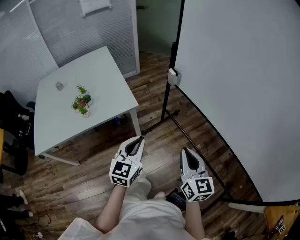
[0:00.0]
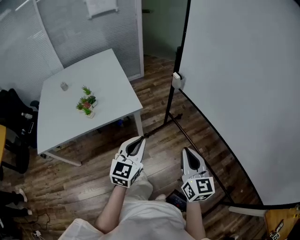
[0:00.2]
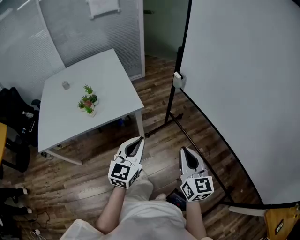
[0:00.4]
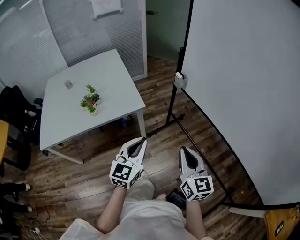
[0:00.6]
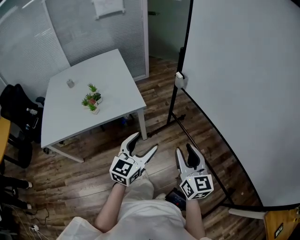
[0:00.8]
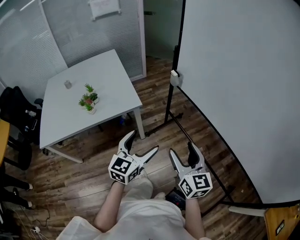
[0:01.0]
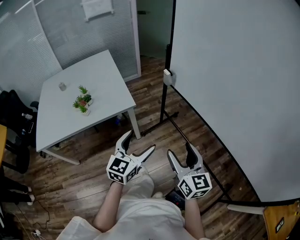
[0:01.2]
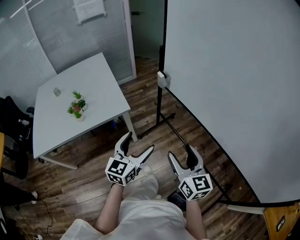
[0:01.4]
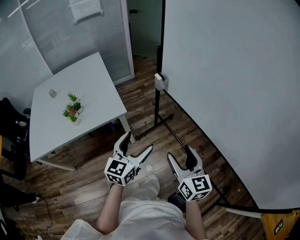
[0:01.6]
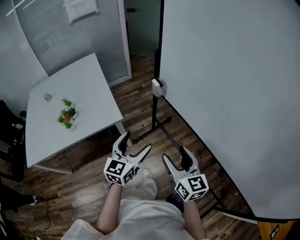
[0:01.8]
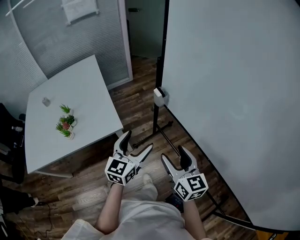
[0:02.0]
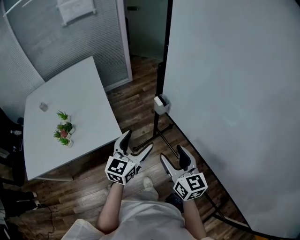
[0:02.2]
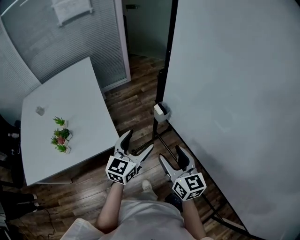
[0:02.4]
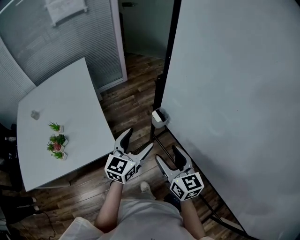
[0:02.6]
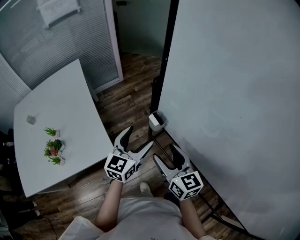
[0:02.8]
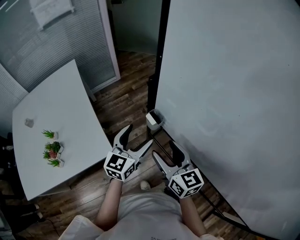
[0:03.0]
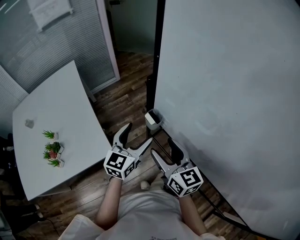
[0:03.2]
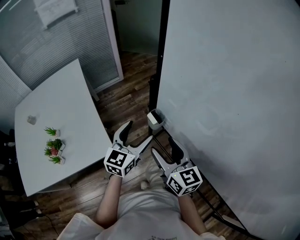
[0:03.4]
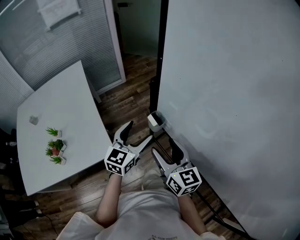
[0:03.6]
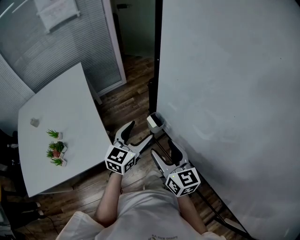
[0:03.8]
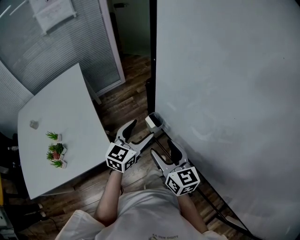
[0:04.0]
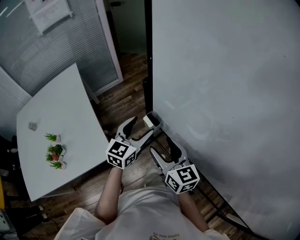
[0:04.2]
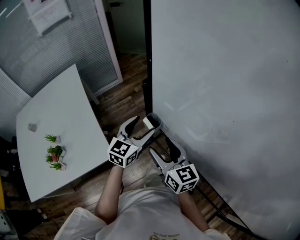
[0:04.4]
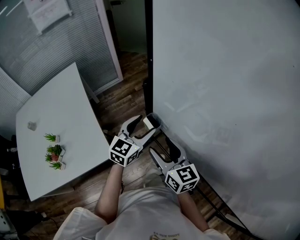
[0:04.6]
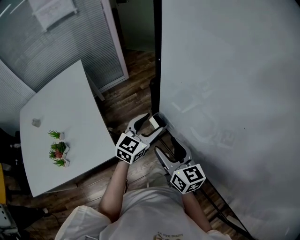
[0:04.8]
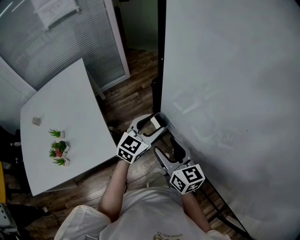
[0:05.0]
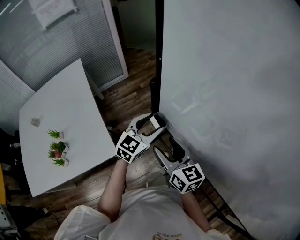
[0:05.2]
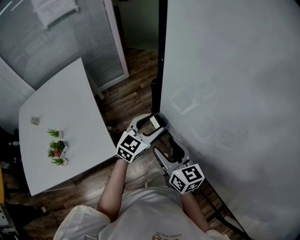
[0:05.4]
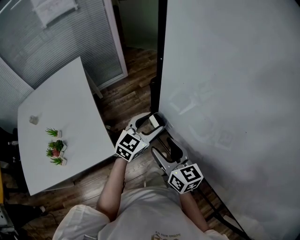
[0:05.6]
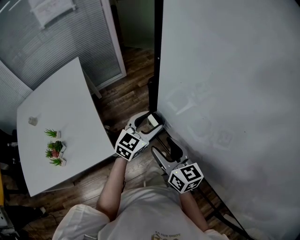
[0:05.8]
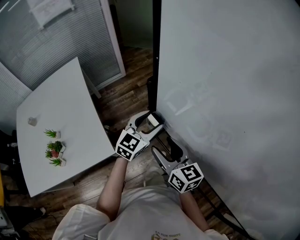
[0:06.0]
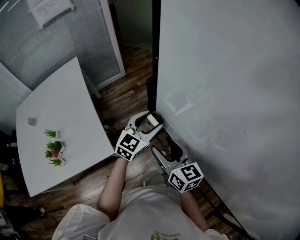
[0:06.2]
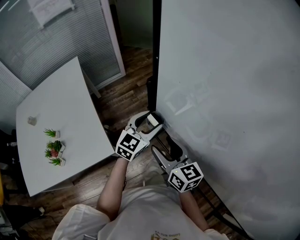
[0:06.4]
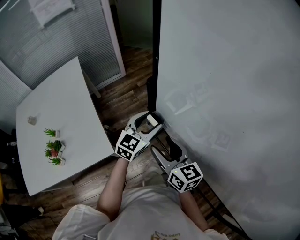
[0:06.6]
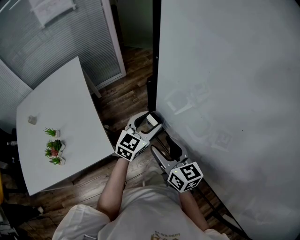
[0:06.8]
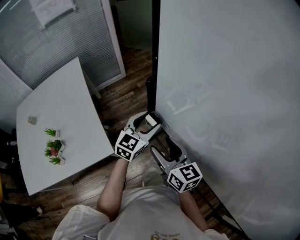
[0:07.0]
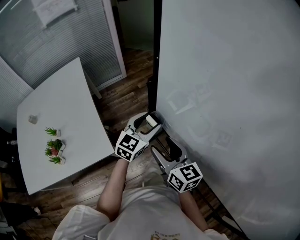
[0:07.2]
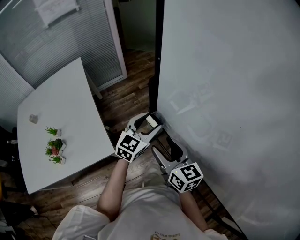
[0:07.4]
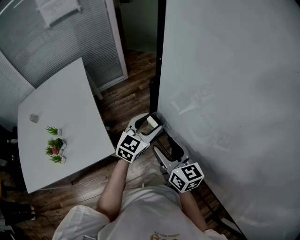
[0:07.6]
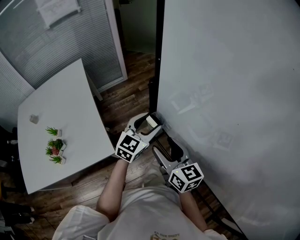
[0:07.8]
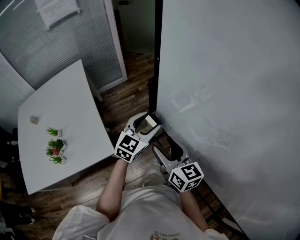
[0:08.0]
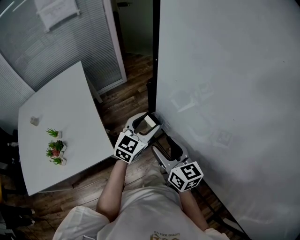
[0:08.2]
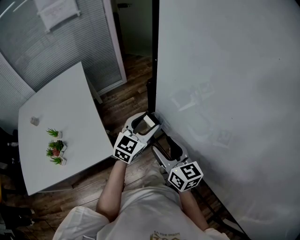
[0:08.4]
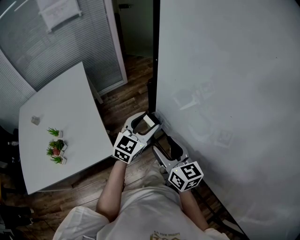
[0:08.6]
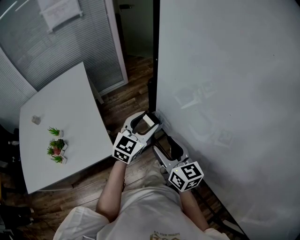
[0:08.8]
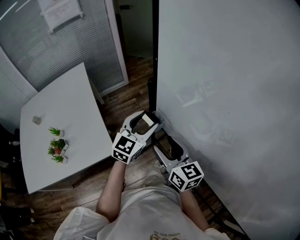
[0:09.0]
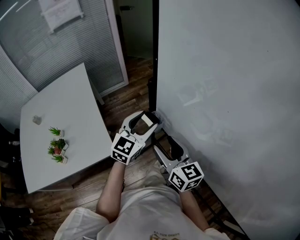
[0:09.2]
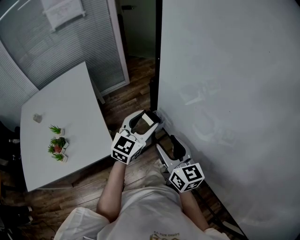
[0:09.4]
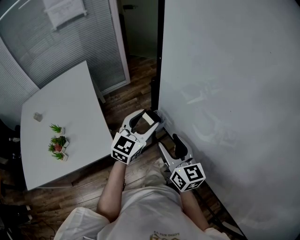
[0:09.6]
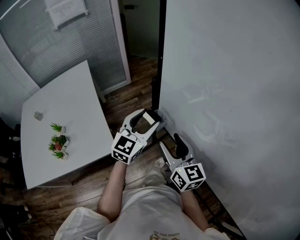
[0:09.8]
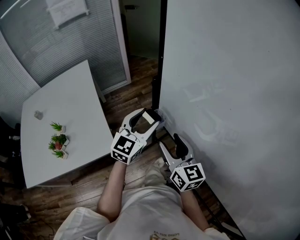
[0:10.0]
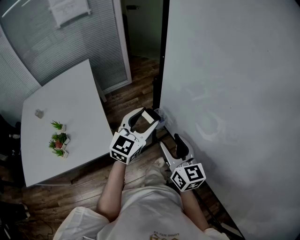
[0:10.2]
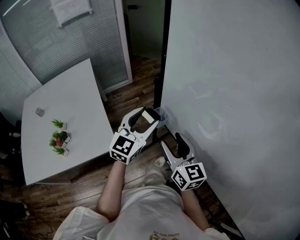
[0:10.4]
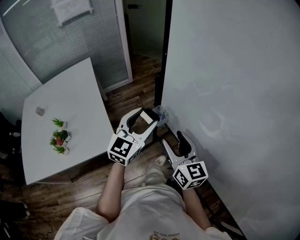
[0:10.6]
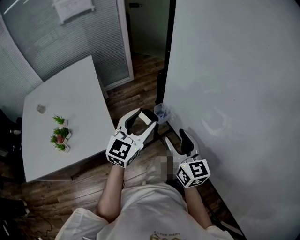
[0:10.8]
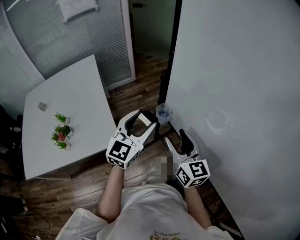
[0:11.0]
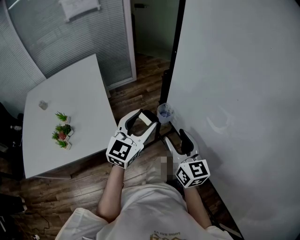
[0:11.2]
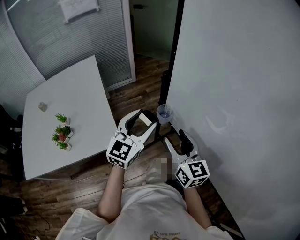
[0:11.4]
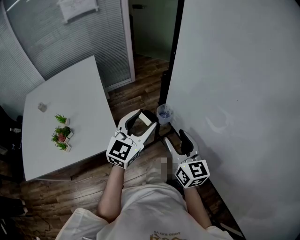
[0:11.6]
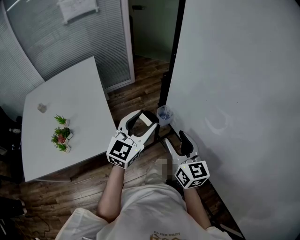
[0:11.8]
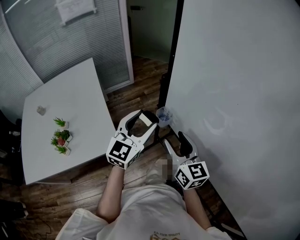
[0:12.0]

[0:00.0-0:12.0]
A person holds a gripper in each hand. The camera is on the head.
0:00.0 to 0:01.6: The two grippers go roughly 5 cm to the right. The left gripper opens. Meanwhile the right gripper opens up.
0:01.6 to 0:03.0: Both grippers travel together forward, some 35 cm.
0:03.0 to 0:04.4: The left gripper moves forward, approximately 5 cm.
0:04.4 to 0:07.6: The grippers make only small movements.
0:07.6 to 0:09.0: The left gripper changes place by about 5 cm.
0:09.0 to 0:10.4: The left gripper shifts by roughly 5 cm.
0:10.4 to 0:12.0: The grippers move only a little.

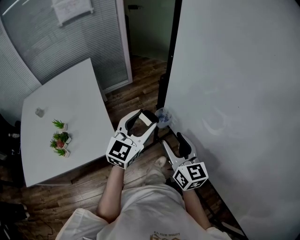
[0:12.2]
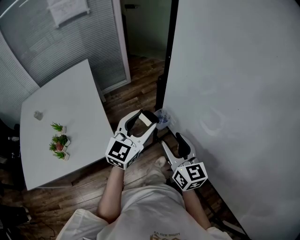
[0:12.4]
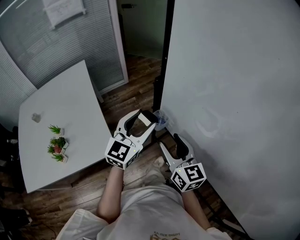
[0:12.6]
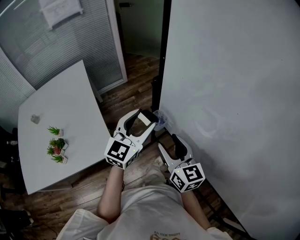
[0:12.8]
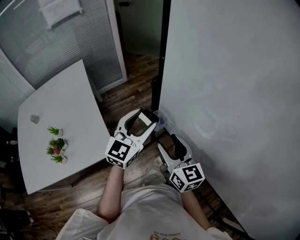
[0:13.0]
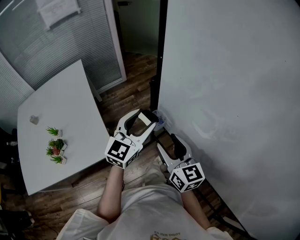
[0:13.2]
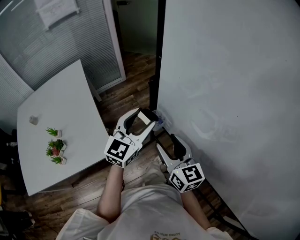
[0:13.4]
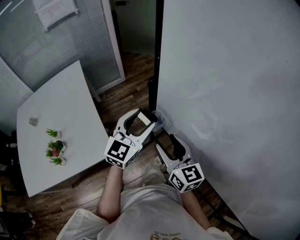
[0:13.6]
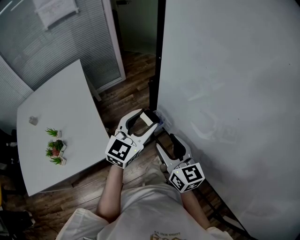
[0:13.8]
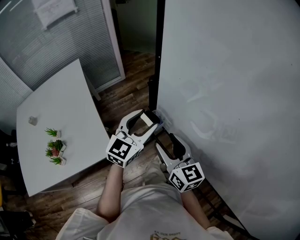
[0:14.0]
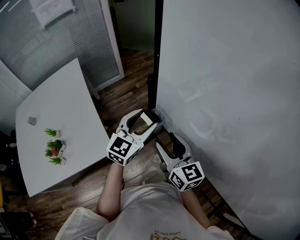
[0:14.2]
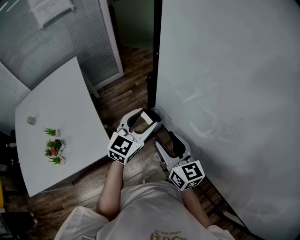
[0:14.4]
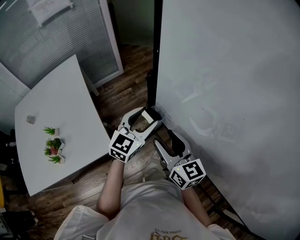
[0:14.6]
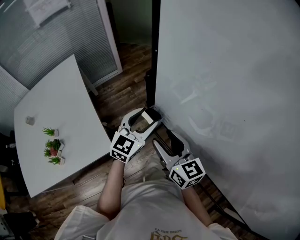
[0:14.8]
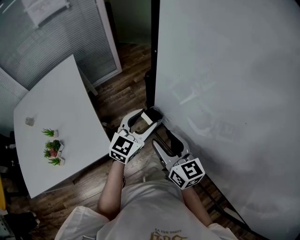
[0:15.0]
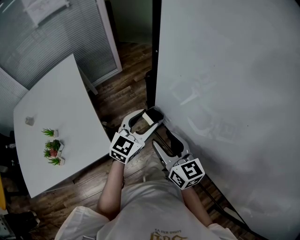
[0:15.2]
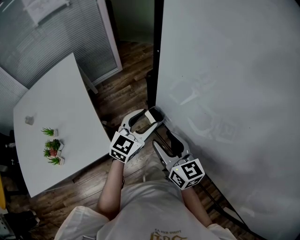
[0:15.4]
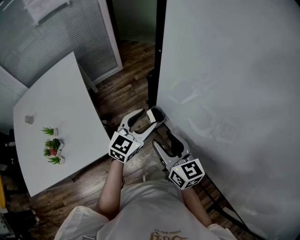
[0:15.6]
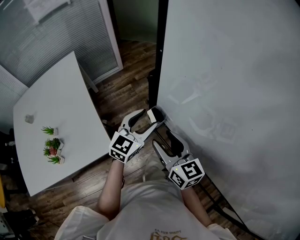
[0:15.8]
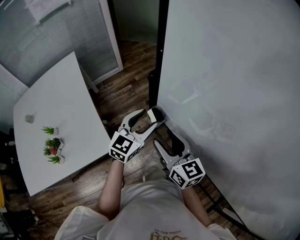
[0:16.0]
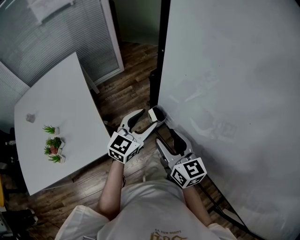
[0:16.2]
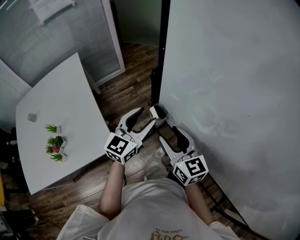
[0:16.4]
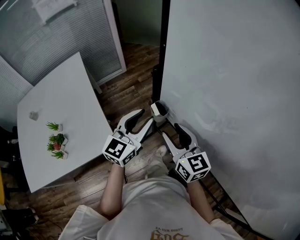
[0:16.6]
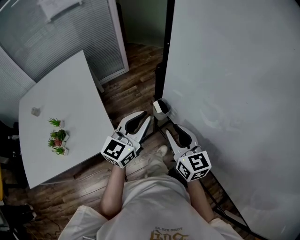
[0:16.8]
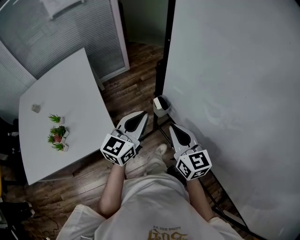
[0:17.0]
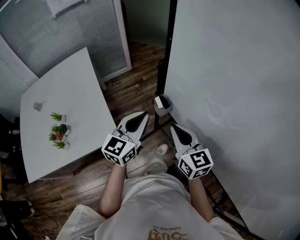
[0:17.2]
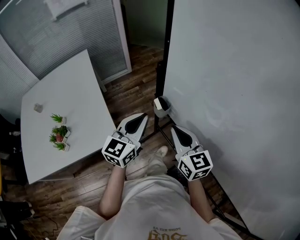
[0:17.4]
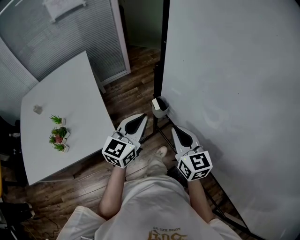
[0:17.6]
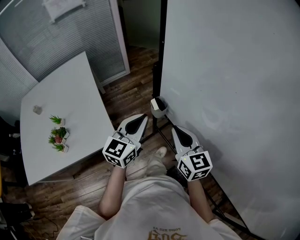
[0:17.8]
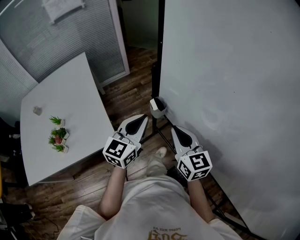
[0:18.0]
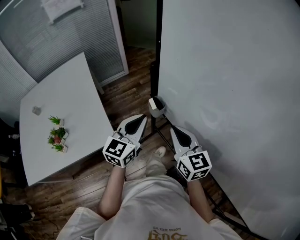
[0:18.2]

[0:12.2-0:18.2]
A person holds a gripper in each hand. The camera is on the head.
0:12.2 to 0:13.8: The left gripper shifts by roughly 5 cm.
0:13.8 to 0:15.2: The left gripper goes approximately 5 cm downward.
0:15.2 to 0:16.6: The left gripper changes place by about 5 cm.
0:16.6 to 0:18.2: The right gripper closes up.

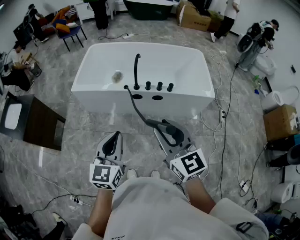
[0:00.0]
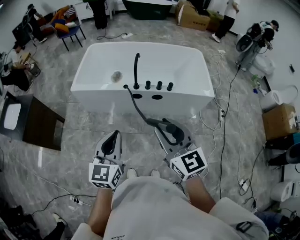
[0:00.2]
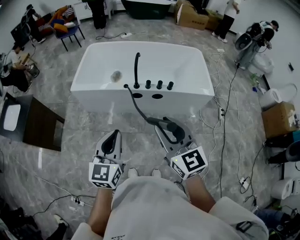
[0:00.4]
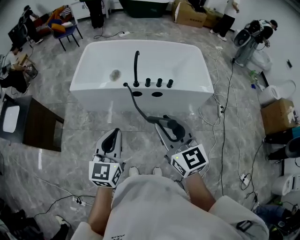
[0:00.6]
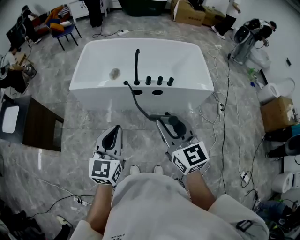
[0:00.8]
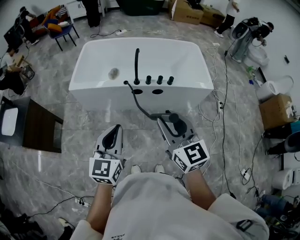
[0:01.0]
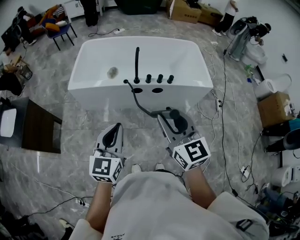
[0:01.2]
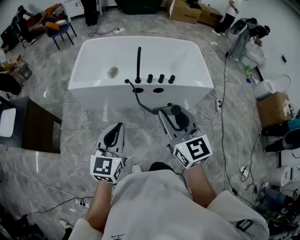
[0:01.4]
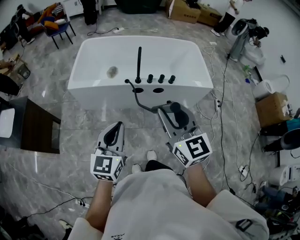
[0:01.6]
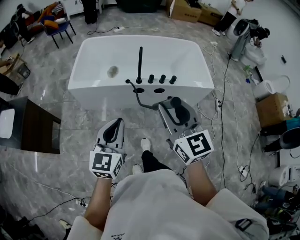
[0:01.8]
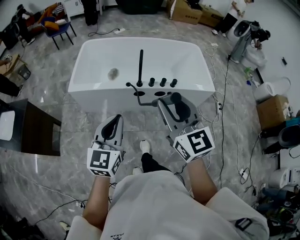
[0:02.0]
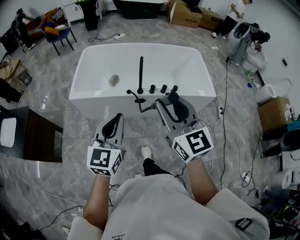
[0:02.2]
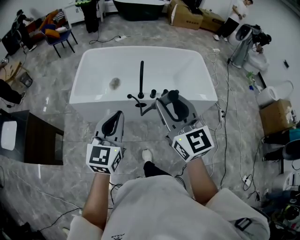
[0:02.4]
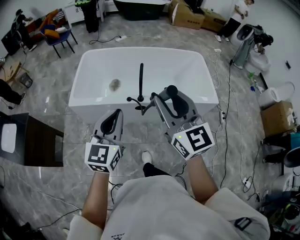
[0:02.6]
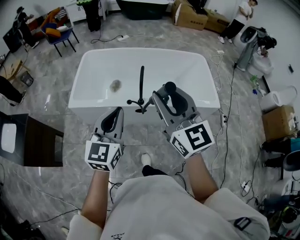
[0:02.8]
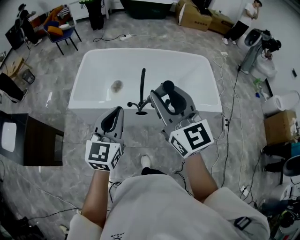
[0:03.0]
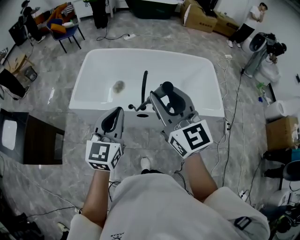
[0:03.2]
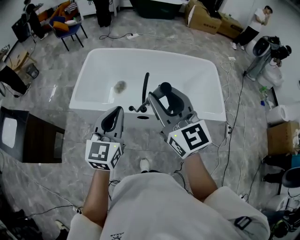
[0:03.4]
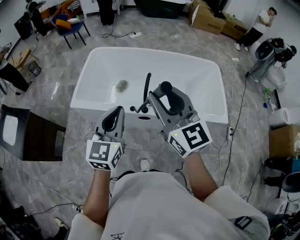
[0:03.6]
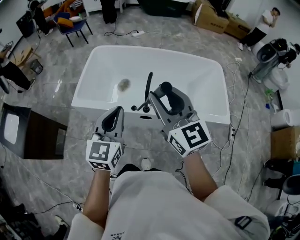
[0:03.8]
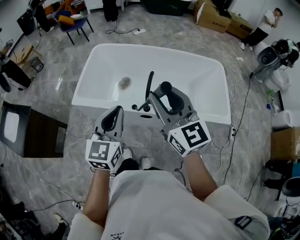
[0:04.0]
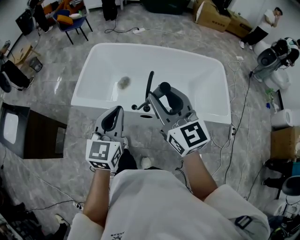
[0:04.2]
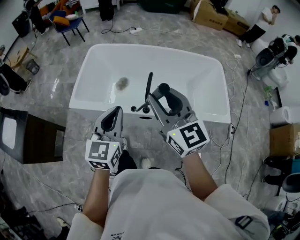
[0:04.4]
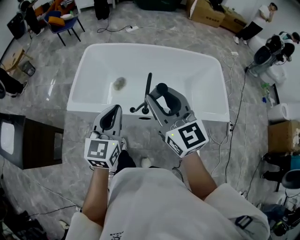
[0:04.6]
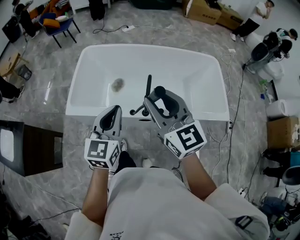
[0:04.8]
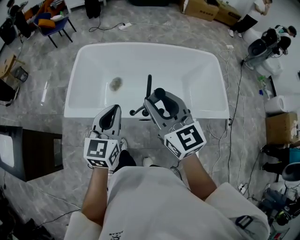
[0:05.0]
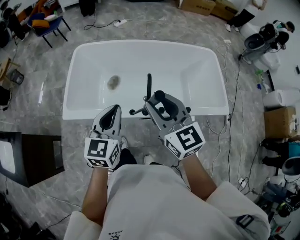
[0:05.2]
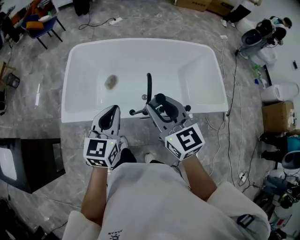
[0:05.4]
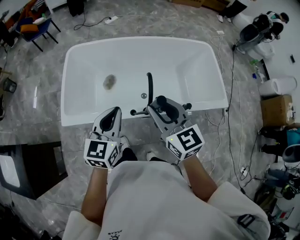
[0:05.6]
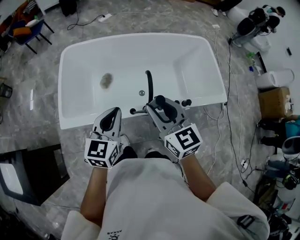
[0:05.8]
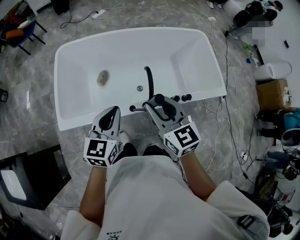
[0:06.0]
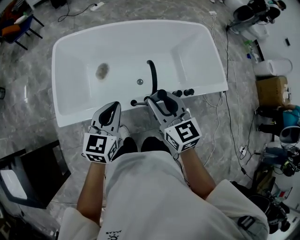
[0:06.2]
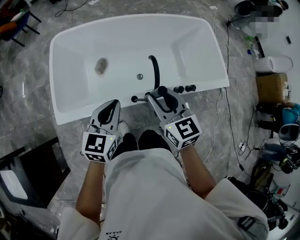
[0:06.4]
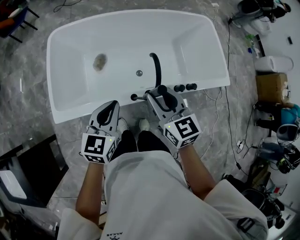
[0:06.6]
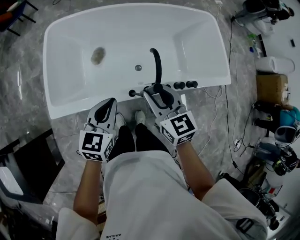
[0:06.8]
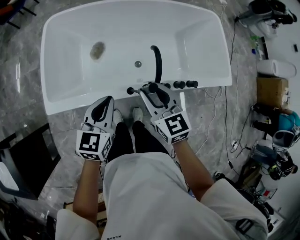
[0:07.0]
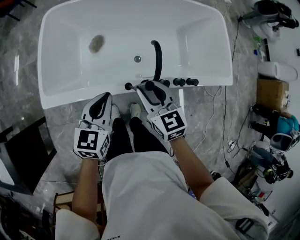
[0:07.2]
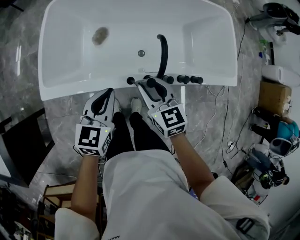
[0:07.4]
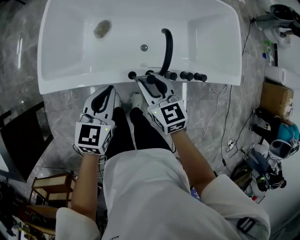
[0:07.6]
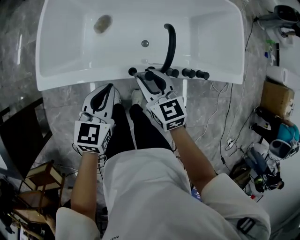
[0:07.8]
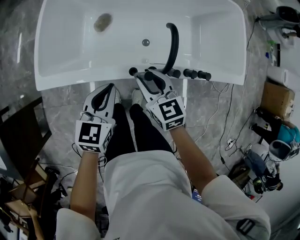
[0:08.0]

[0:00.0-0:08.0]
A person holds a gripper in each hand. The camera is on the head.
0:00.0 to 0:01.6: The grippers both shift to the left by about 5 cm.
0:01.6 to 0:03.2: The grippers both shift forward by approximately 25 cm.
0:03.2 to 0:04.8: Both grippers move forward and downward, some 15 cm.
0:04.8 to 0:06.4: The right gripper is displaced downward and forward by some 20 cm, and rotates some 30 degrees. Meanwhile the left gripper is displaced downward, forward and to the left by some 15 cm, and swivels about 20 degrees.
0:06.4 to 0:08.0: Both grippers move downward, about 15 cm.
